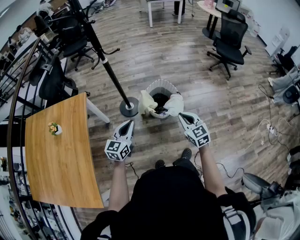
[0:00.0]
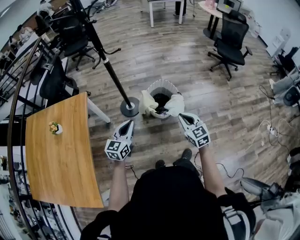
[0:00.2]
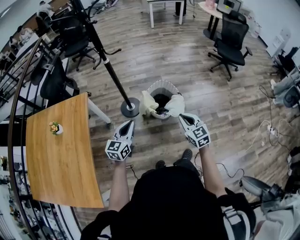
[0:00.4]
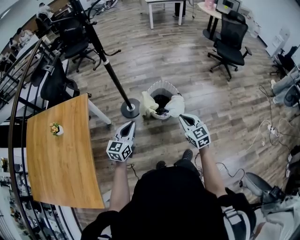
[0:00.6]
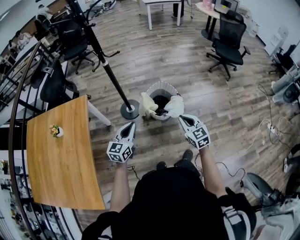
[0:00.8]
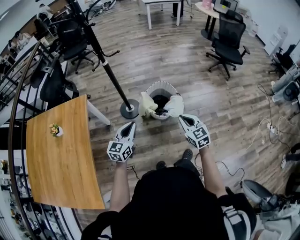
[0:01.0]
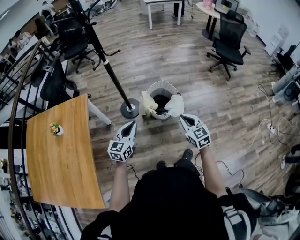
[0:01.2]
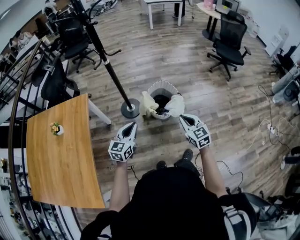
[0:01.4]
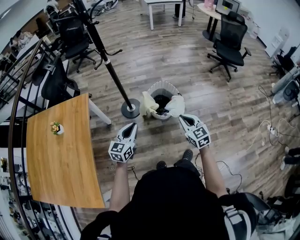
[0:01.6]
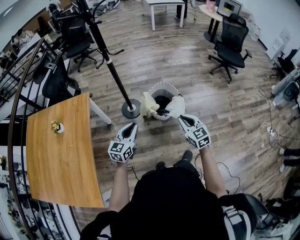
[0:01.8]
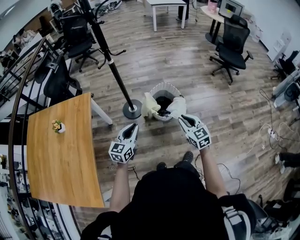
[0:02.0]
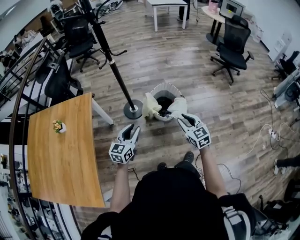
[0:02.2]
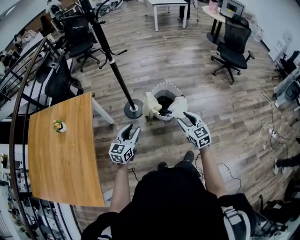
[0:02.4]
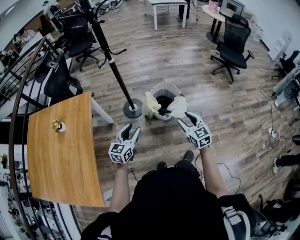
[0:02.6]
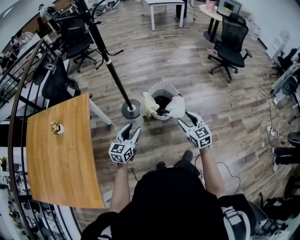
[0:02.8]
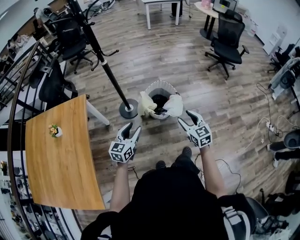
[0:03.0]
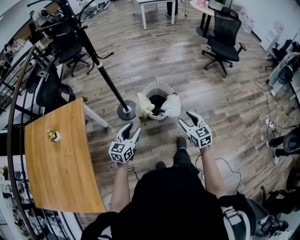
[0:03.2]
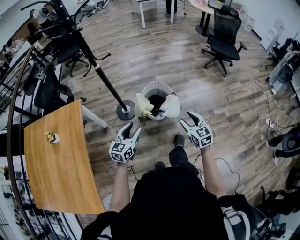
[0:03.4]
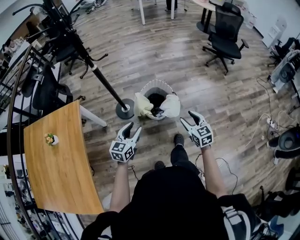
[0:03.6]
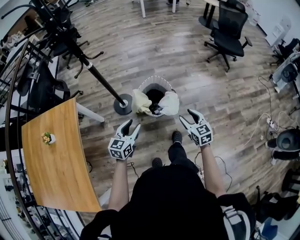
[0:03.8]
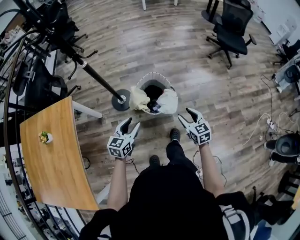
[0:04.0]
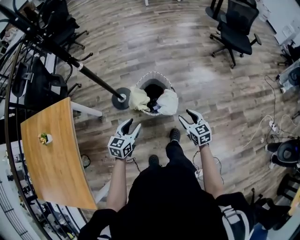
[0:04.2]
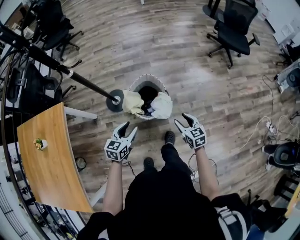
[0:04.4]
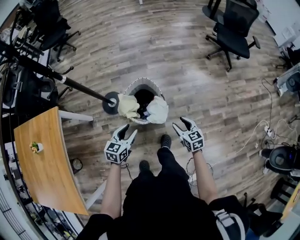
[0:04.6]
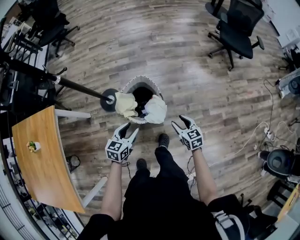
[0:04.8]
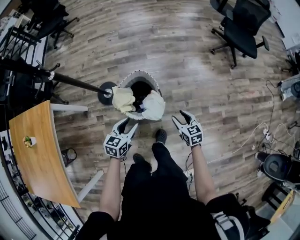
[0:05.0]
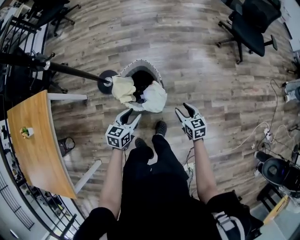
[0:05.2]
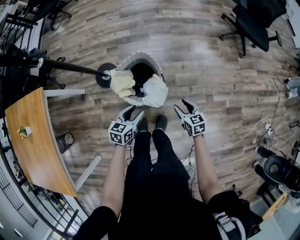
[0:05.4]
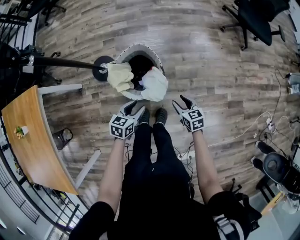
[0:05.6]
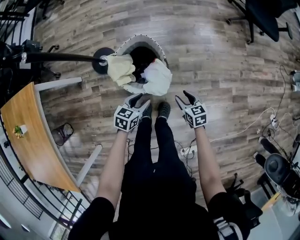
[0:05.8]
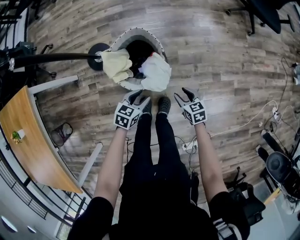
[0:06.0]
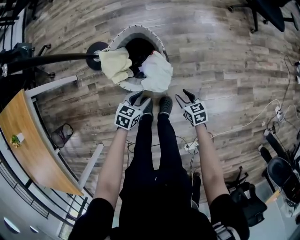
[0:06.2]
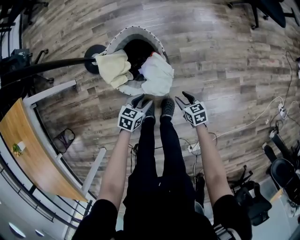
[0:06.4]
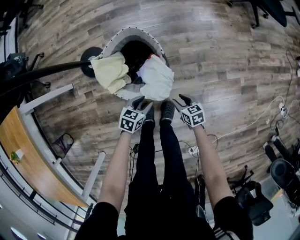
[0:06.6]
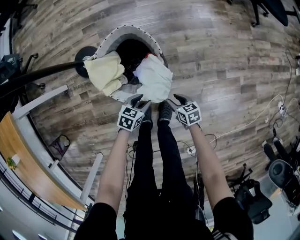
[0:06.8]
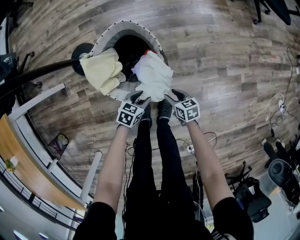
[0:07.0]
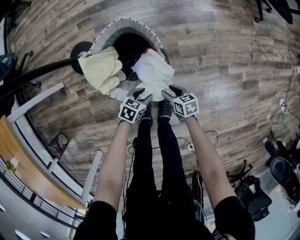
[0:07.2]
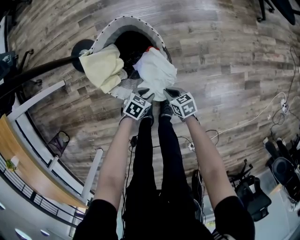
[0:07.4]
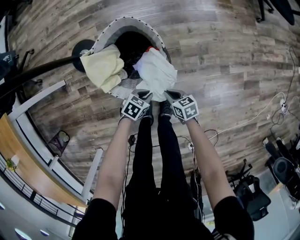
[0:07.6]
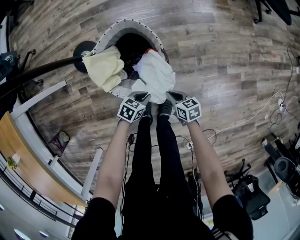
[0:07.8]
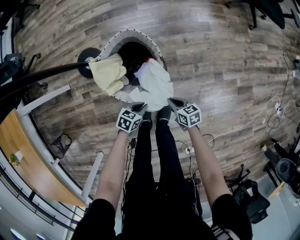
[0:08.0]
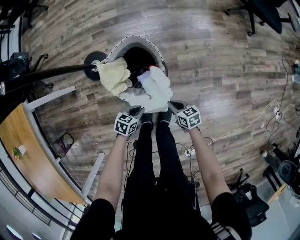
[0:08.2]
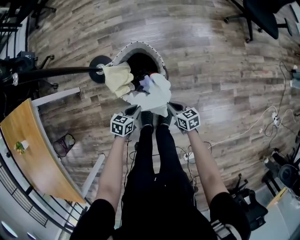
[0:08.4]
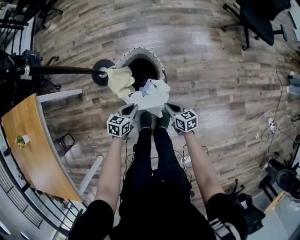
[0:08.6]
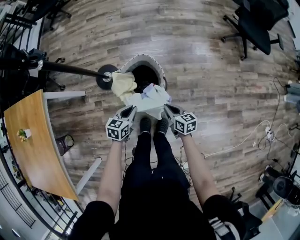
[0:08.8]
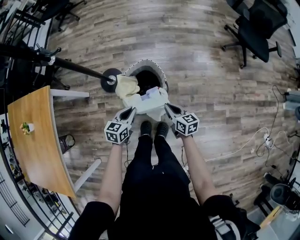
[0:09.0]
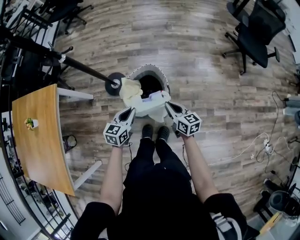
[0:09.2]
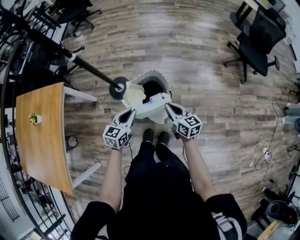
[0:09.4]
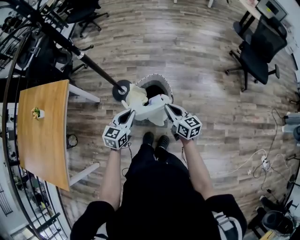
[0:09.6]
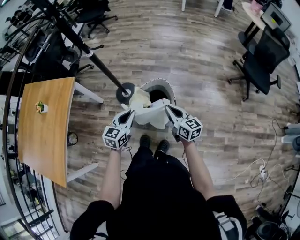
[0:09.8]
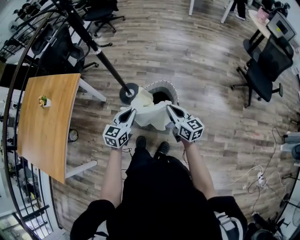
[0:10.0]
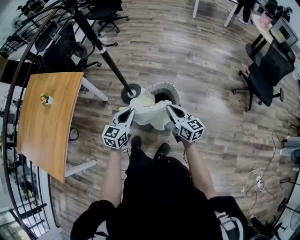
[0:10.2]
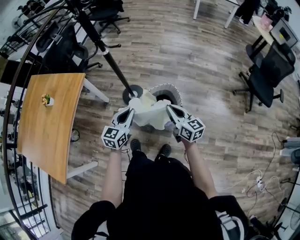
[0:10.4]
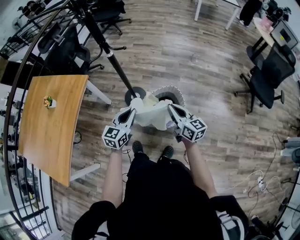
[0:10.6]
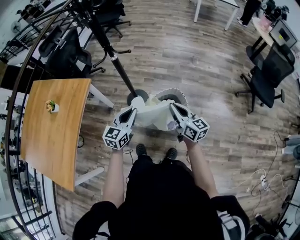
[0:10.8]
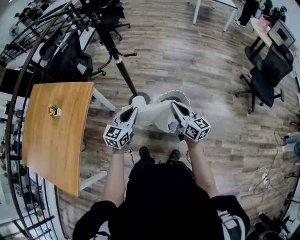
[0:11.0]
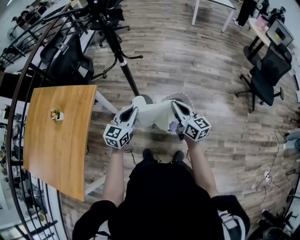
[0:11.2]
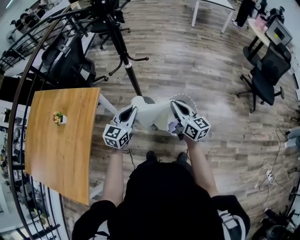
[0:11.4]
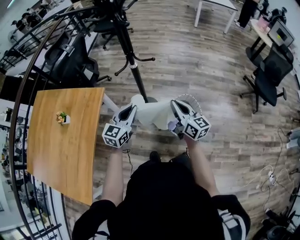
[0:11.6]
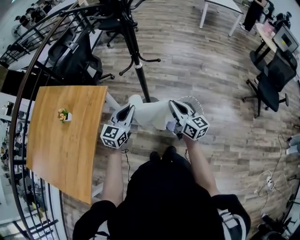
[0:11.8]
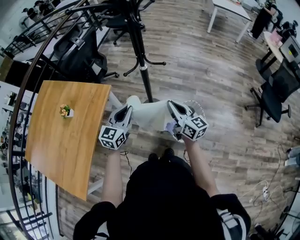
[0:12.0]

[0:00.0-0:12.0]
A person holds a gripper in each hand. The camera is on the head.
0:00.0 to 0:01.6: There are only small adjustments of the grippers.
0:01.6 to 0:03.0: The left gripper opens up; the right gripper opens up.
0:03.0 to 0:04.4: The grippers both shift forward, to the right and downward by about 25 cm.
0:04.4 to 0:06.0: The right gripper is displaced downward by some 25 cm, while the left gripper goes some 30 cm downward and to the right, and changes its angle by approximately 20 degrees.
0:06.0 to 0:07.6: The grippers both shift downward by approximately 20 cm. The left gripper rotates roughly 20 degrees, and closes up, while the right gripper closes up.
0:07.6 to 0:09.0: The two grippers go roughly 35 cm upward. The right gripper rotates approximately 20 degrees. The left gripper changes its angle by roughly 40 degrees.
0:09.0 to 0:10.4: The grippers both shift upward and to the left by about 25 cm. The left gripper turns by some 30 degrees. Meanwhile the right gripper swivels about 30 degrees.
0:10.4 to 0:12.0: The grippers both shift to the left and forward by roughly 25 cm.

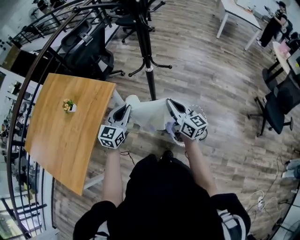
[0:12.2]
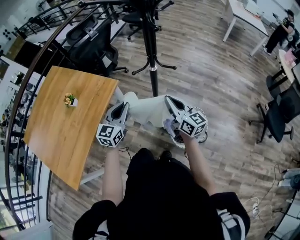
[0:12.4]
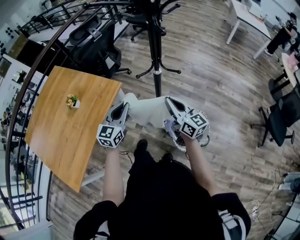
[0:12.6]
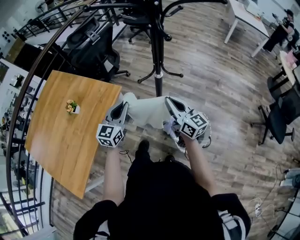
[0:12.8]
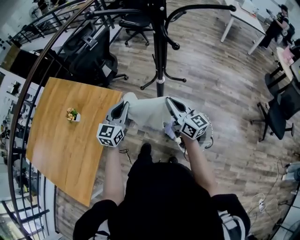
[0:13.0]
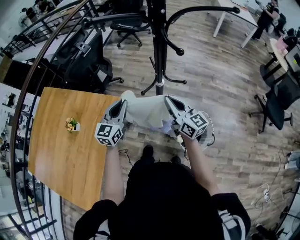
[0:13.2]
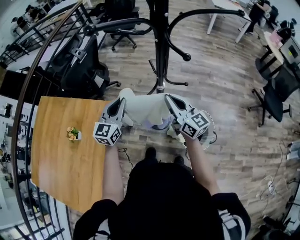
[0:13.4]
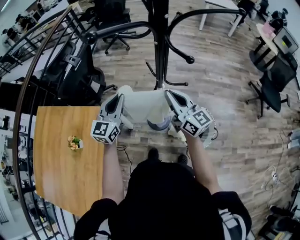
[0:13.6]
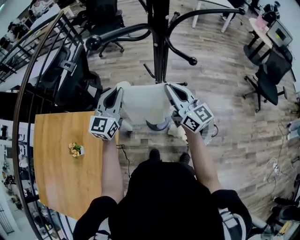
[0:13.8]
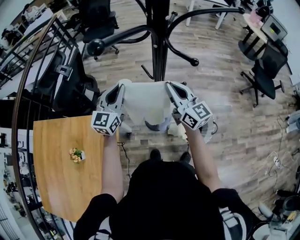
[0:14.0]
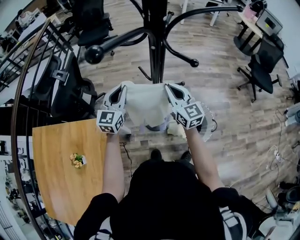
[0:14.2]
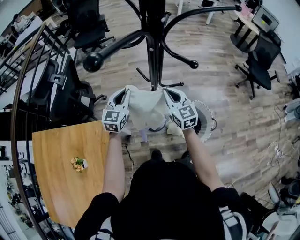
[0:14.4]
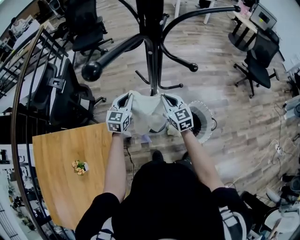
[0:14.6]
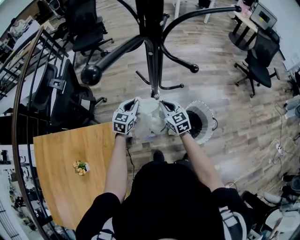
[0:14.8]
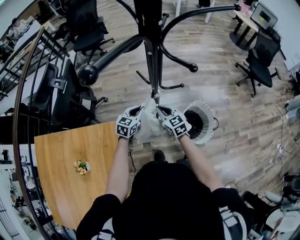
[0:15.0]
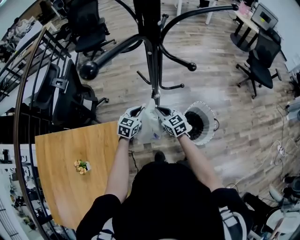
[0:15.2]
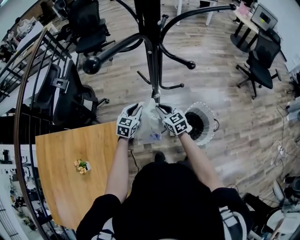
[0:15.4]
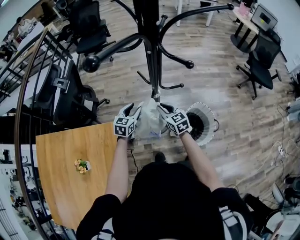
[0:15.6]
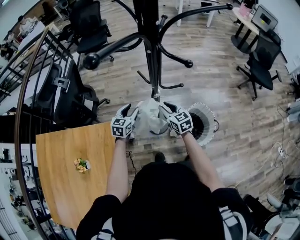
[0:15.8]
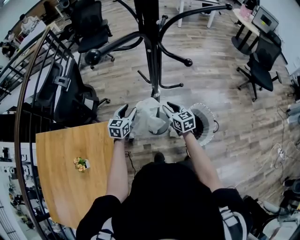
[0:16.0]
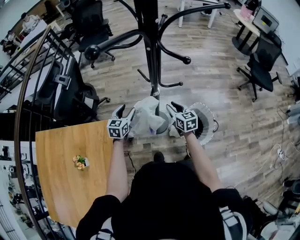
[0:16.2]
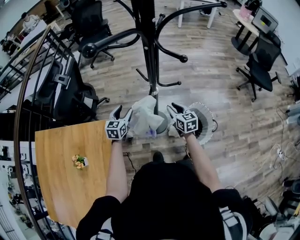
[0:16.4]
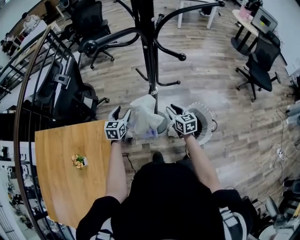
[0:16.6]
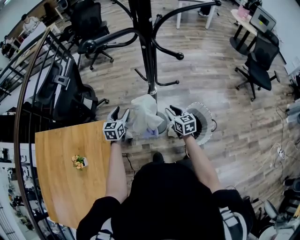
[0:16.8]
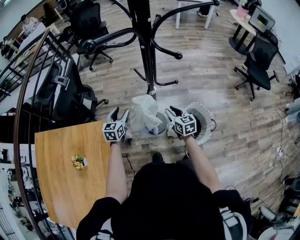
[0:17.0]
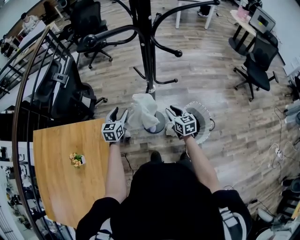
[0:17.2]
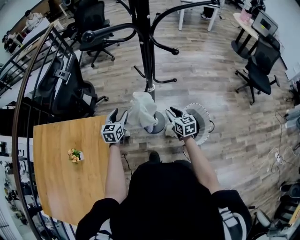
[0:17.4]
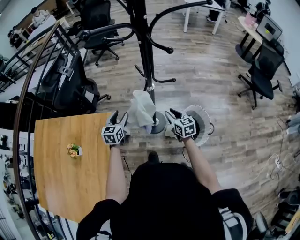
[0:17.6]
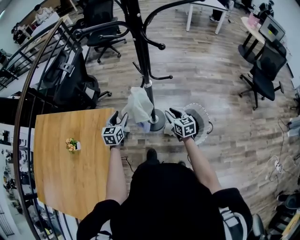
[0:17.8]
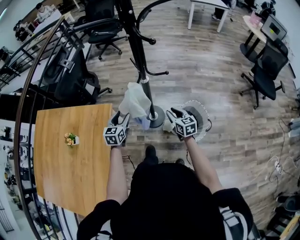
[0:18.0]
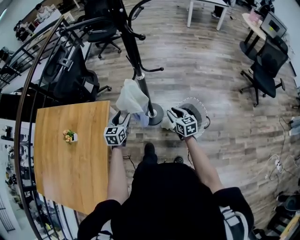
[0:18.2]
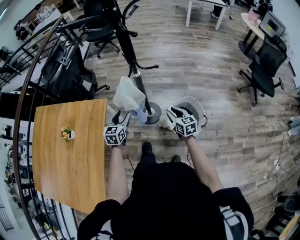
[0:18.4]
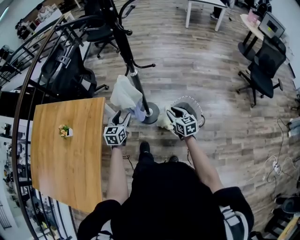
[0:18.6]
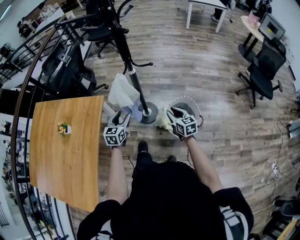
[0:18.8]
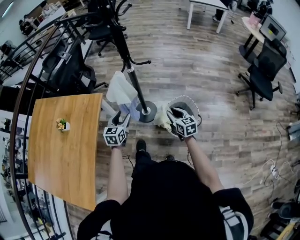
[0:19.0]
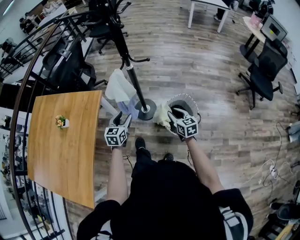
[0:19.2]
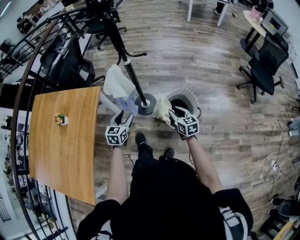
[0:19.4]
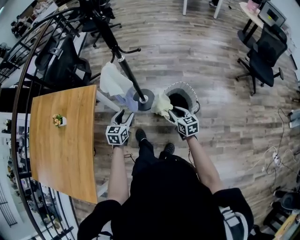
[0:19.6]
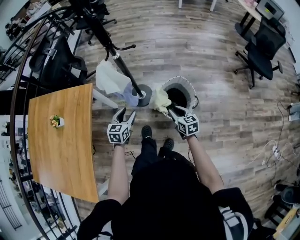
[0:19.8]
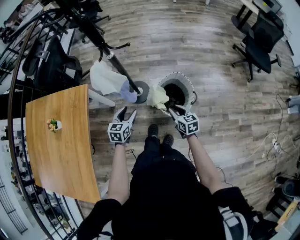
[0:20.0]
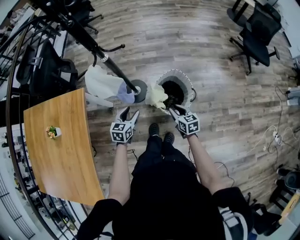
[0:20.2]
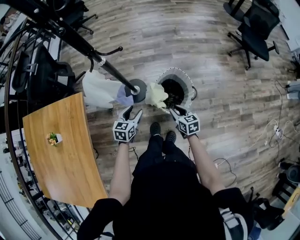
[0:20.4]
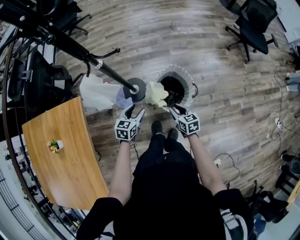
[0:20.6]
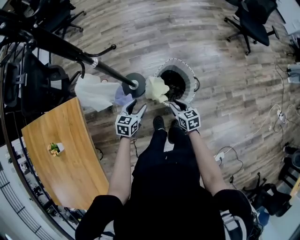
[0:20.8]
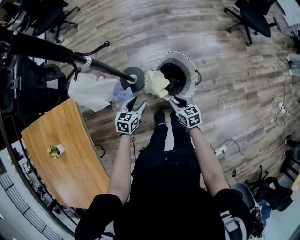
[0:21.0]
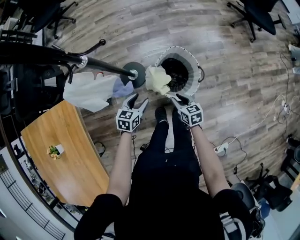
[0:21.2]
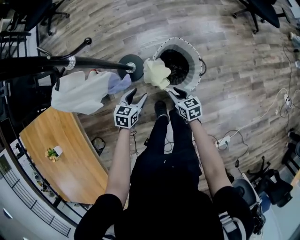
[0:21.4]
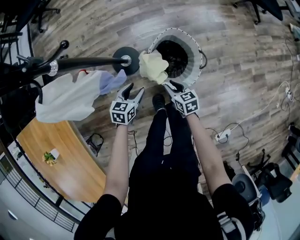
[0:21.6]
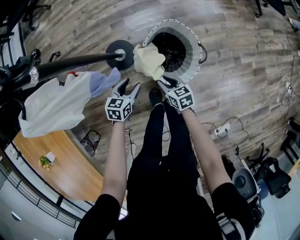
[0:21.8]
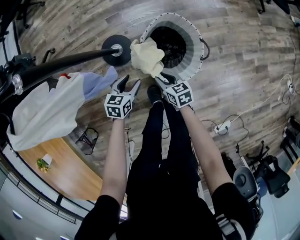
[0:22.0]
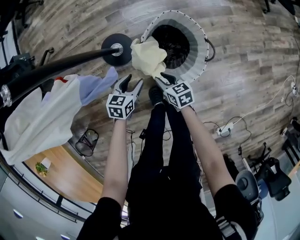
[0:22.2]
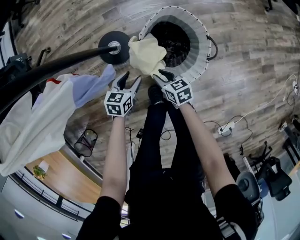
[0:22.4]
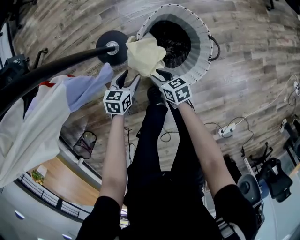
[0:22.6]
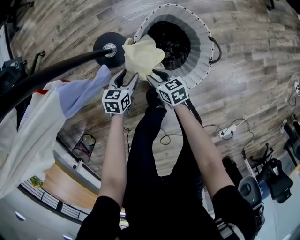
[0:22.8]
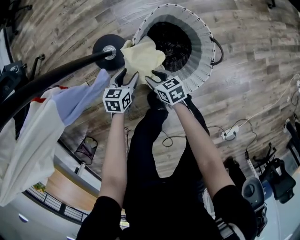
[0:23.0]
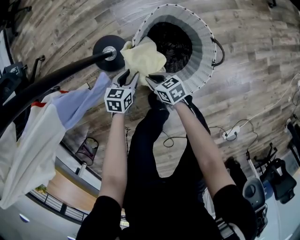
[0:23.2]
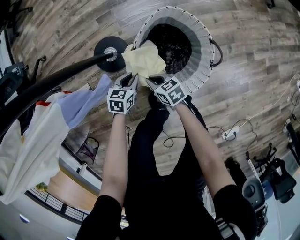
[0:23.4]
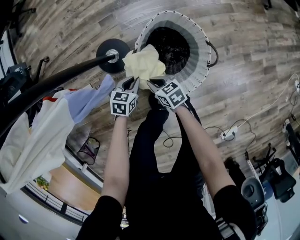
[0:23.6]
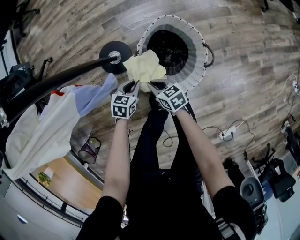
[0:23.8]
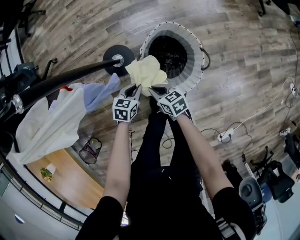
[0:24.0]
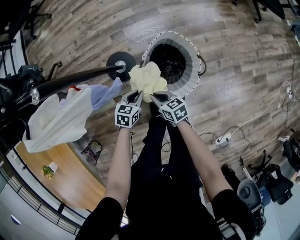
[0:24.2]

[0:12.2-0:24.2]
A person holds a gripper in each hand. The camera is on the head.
0:12.2 to 0:13.8: The left gripper goes roughly 25 cm forward. Meanwhile the right gripper is displaced forward, upward and to the left by about 20 cm, and rotates approximately 20 degrees.
0:13.8 to 0:15.2: Both grippers move downward, approximately 25 cm. The right gripper angles its fingers downward, by roughly 30 degrees, while the left gripper tips its fingers downward by roughly 30 degrees.
0:15.2 to 0:16.6: The right gripper heads to the right, covering some 10 cm, and opens. The left gripper heads to the left, covering roughly 10 cm, swivels roughly 20 degrees, and opens up.
0:16.6 to 0:18.2: The right gripper moves backward and to the right, approximately 15 cm, while the left gripper shifts roughly 15 cm backward.
0:18.2 to 0:19.8: The left gripper shifts approximately 20 cm to the right and backward, while the right gripper heads backward, to the right and downward, covering roughly 20 cm.
0:19.8 to 0:21.2: The left gripper travels downward, forward and to the right by roughly 20 cm, and turns by approximately 30 degrees; the right gripper goes approximately 15 cm downward.
0:21.2 to 0:22.6: The grippers both shift downward by approximately 25 cm.
0:22.6 to 0:24.2: The grippers both shift upward by approximately 15 cm. The left gripper closes its fingers, while the right gripper closes up.
